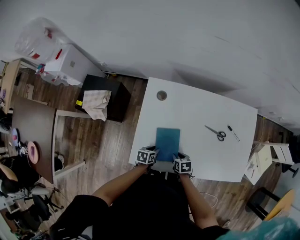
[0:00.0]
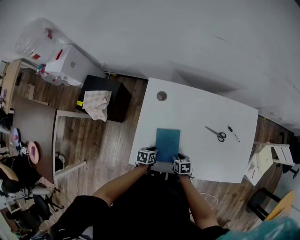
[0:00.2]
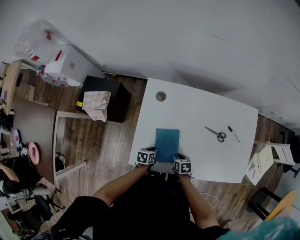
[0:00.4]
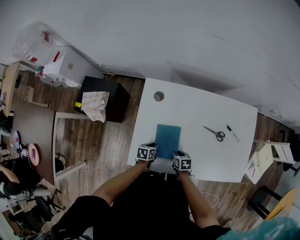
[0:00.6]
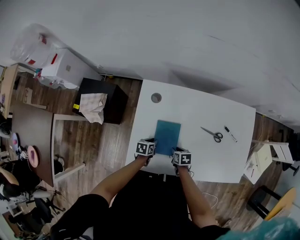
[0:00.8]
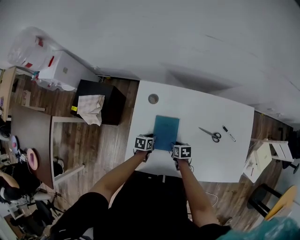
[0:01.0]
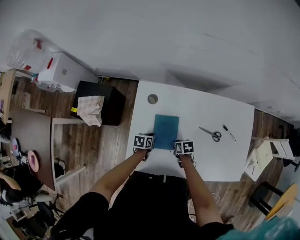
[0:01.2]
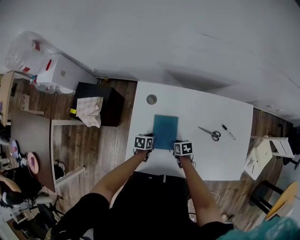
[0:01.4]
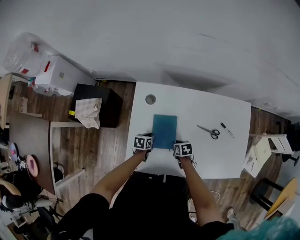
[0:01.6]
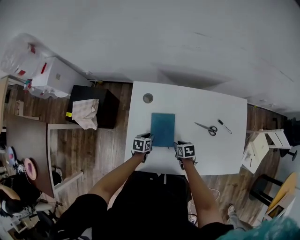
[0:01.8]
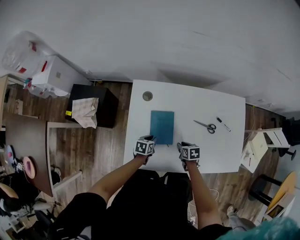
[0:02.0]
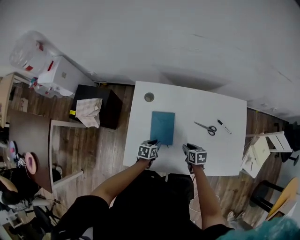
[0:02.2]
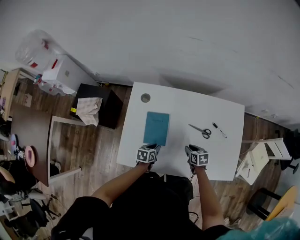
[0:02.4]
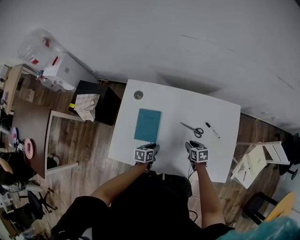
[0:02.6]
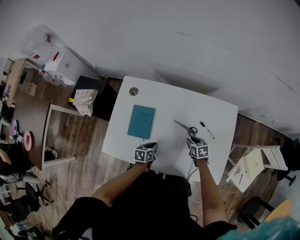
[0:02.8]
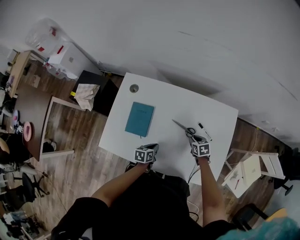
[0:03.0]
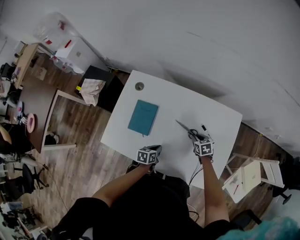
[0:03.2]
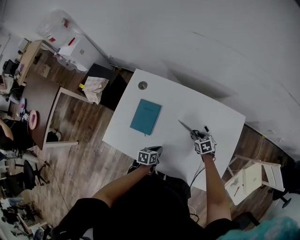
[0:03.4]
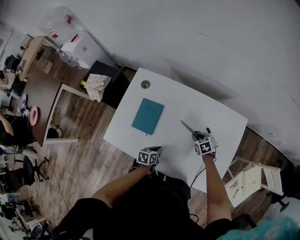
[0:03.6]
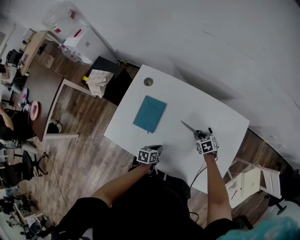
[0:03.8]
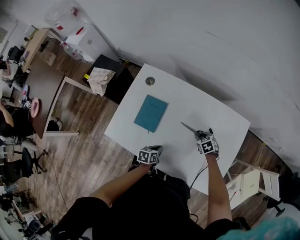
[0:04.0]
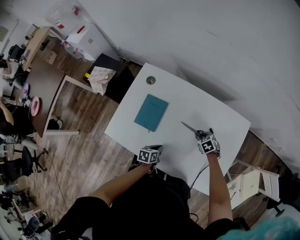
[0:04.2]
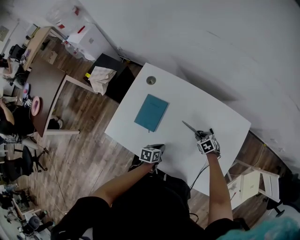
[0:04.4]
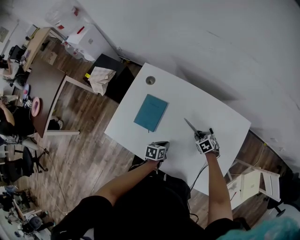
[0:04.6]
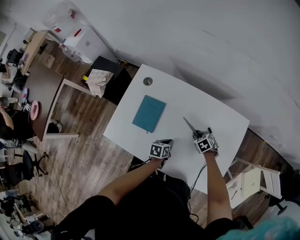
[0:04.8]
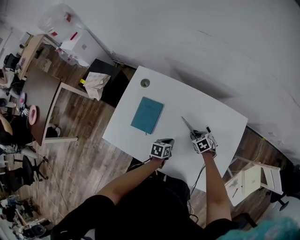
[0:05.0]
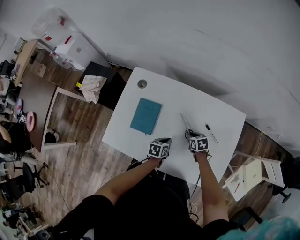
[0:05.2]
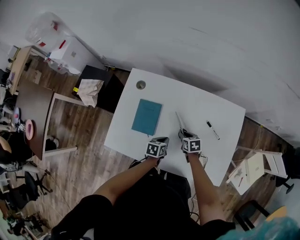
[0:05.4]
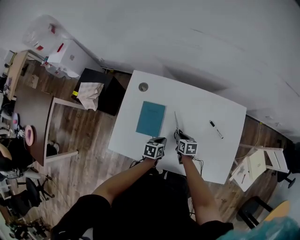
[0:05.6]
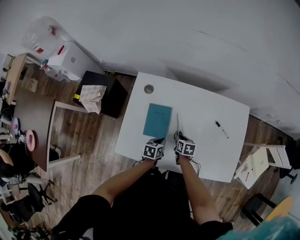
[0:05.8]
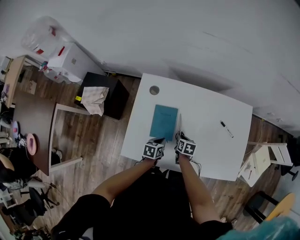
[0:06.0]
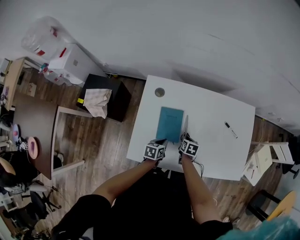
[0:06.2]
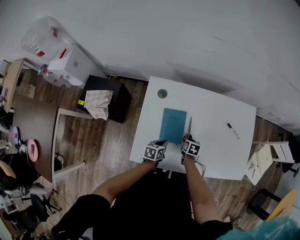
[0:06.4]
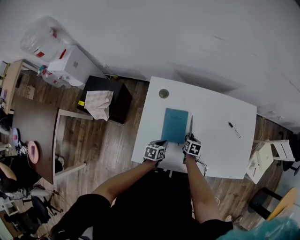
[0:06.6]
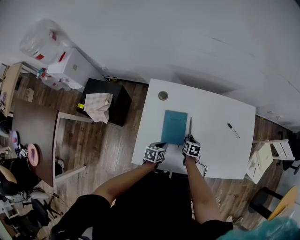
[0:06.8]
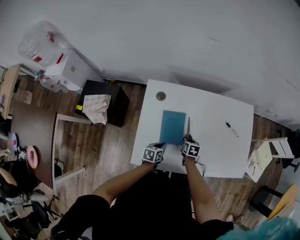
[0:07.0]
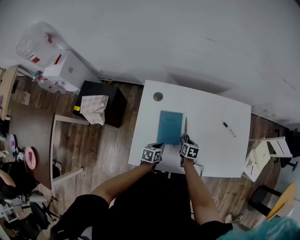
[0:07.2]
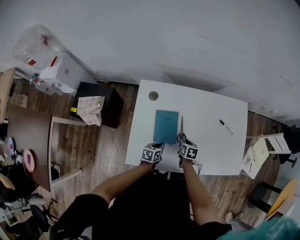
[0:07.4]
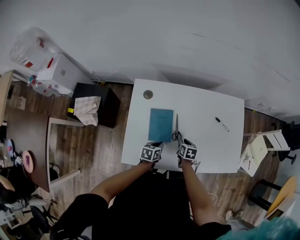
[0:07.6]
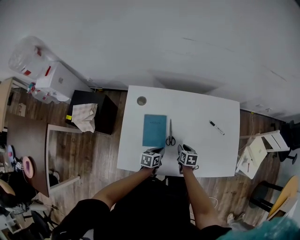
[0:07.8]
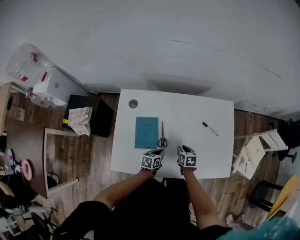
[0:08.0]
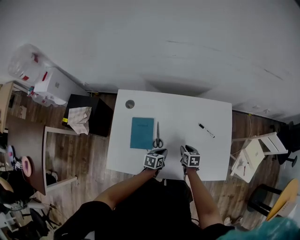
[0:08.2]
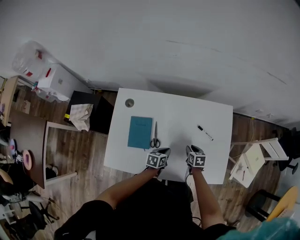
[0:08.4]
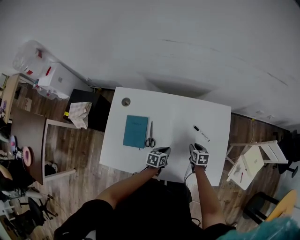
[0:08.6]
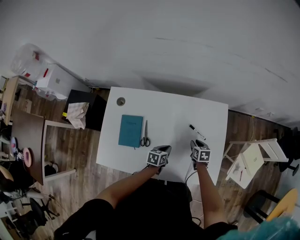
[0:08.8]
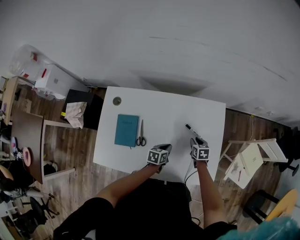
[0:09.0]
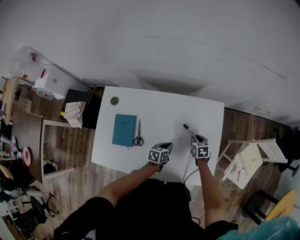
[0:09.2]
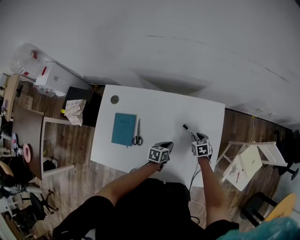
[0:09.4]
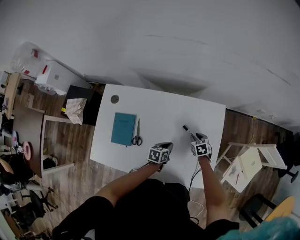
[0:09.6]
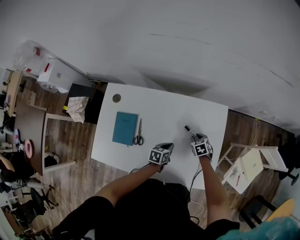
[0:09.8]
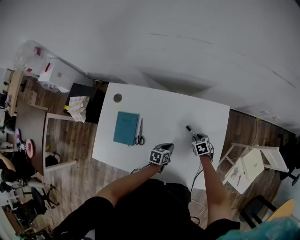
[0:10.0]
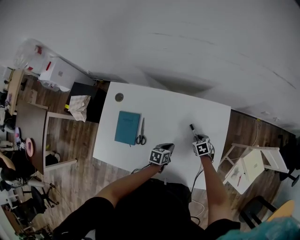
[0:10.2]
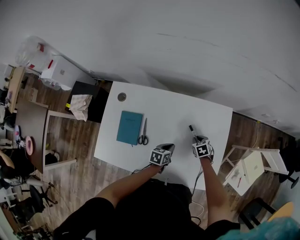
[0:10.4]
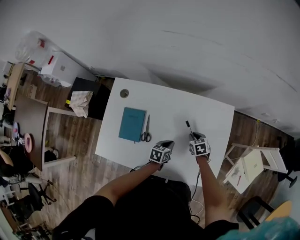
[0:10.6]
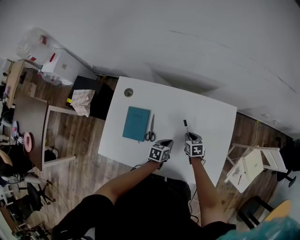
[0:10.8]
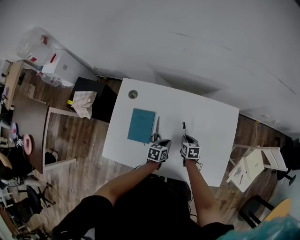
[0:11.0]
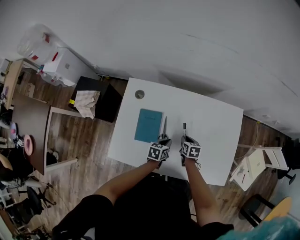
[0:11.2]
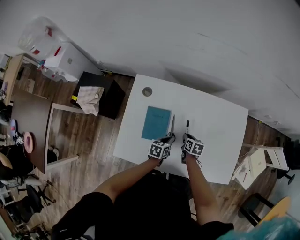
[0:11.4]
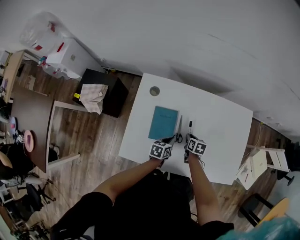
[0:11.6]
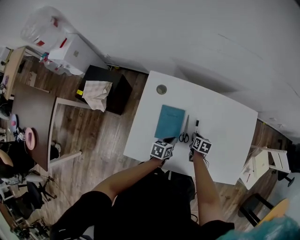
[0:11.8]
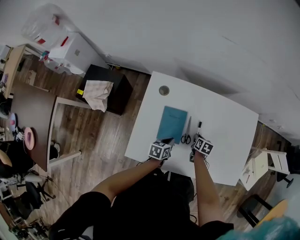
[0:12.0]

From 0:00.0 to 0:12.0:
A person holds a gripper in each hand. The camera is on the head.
From 0:00.0 to 0:01.6: The grippers both shift forward by some 10 cm.
From 0:01.6 to 0:03.0: The right gripper shifts about 30 cm to the right, and changes its angle by roughly 20 degrees. Meanwhile the left gripper shifts approximately 25 cm to the right and backward.
From 0:03.0 to 0:04.4: The right gripper rotates roughly 30 degrees.
From 0:04.4 to 0:06.0: The left gripper moves to the left and forward, about 15 cm. Meanwhile the right gripper travels to the left by roughly 20 cm, and rotates around the line of its fingers by roughly 60 degrees, clockwise from behind.
From 0:07.6 to 0:09.0: Both grippers travel together to the right and forward, roughly 30 cm.
From 0:09.0 to 0:10.4: The right gripper rotates approximately 30 degrees.
From 0:10.4 to 0:12.0: Both grippers travel together to the left, about 25 cm. The right gripper turns by some 40 degrees.

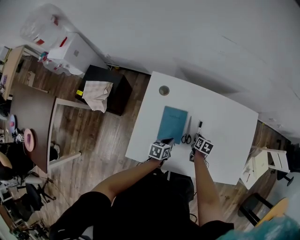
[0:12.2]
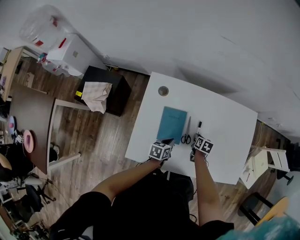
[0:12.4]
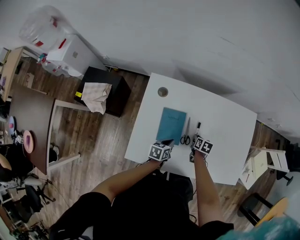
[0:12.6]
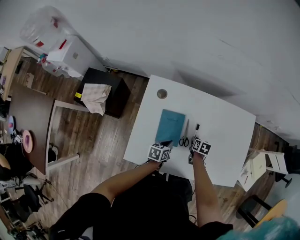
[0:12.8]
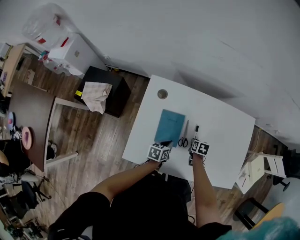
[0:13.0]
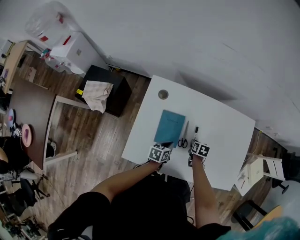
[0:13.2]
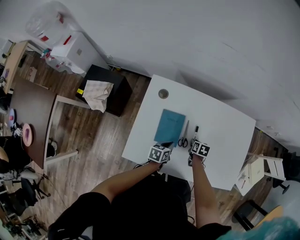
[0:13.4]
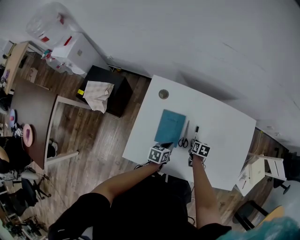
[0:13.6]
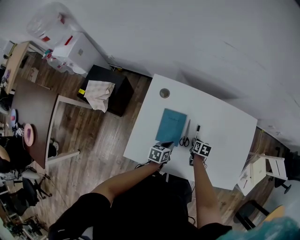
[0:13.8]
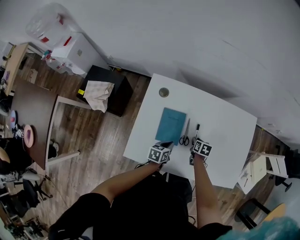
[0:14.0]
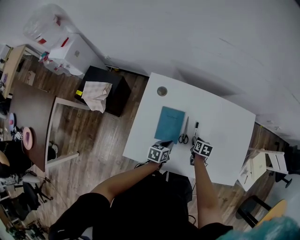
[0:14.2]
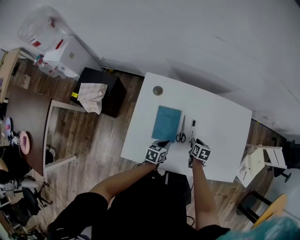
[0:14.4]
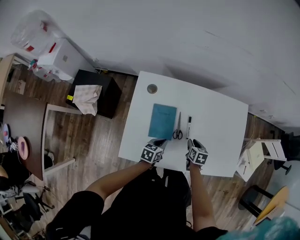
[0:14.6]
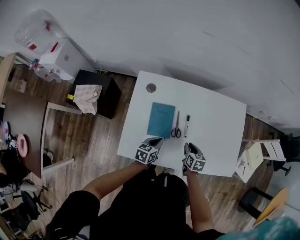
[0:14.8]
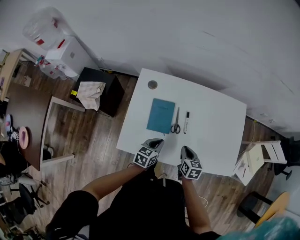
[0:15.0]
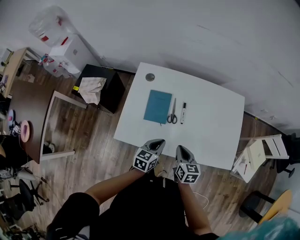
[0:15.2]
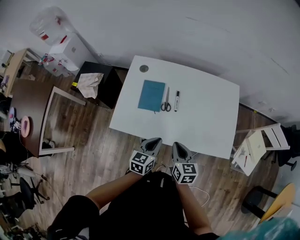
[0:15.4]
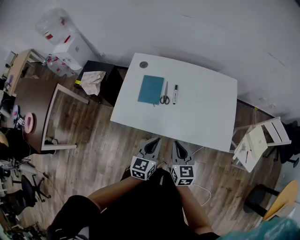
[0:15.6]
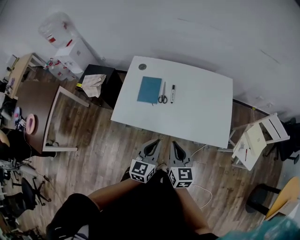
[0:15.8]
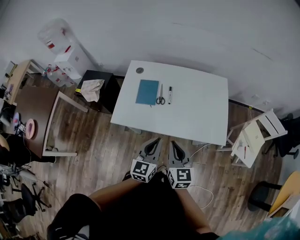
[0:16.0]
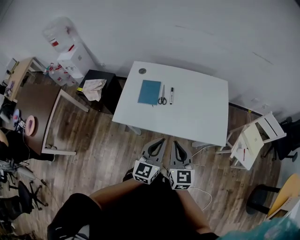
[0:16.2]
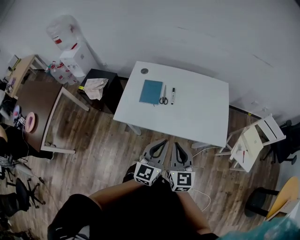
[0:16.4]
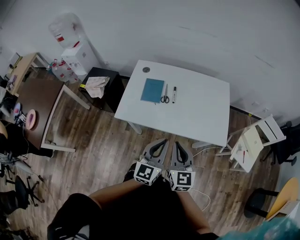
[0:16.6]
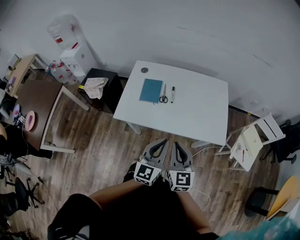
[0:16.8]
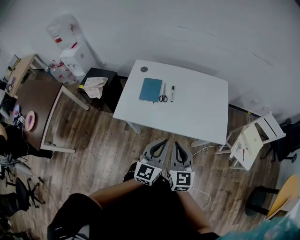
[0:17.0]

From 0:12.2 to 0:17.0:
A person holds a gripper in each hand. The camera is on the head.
From 0:12.2 to 0:13.8: There are only small adjustments of the grippers.
From 0:13.8 to 0:15.4: The left gripper travels backward, upward and to the right by approximately 25 cm, and rotates approximately 30 degrees, while the right gripper heads backward and upward, covering roughly 35 cm, and tilts its fingers some 30 degrees upward.
From 0:15.4 to 0:17.0: The right gripper goes about 20 cm backward and upward, and turns by some 30 degrees. The left gripper is displaced backward, upward and to the right by approximately 20 cm, and swivels roughly 30 degrees.

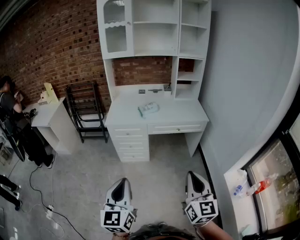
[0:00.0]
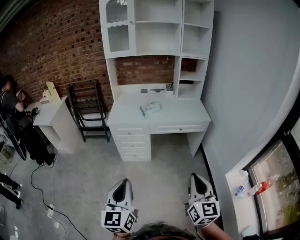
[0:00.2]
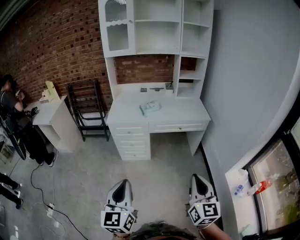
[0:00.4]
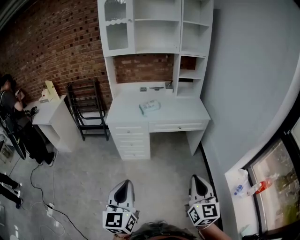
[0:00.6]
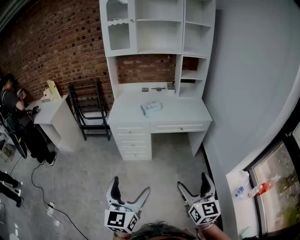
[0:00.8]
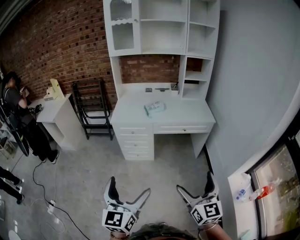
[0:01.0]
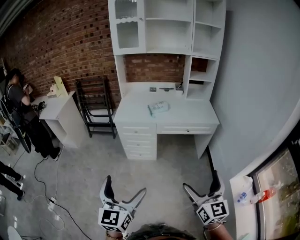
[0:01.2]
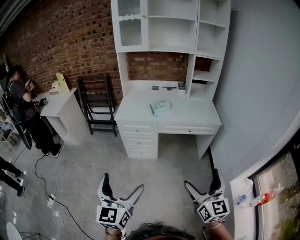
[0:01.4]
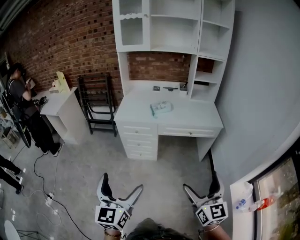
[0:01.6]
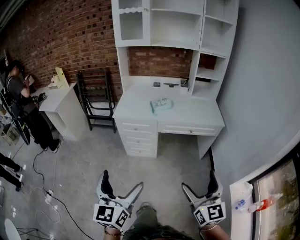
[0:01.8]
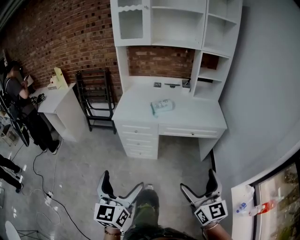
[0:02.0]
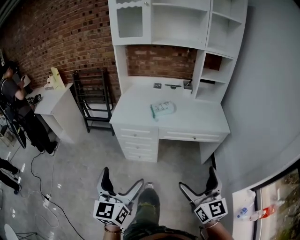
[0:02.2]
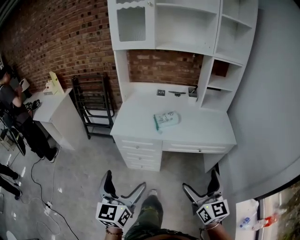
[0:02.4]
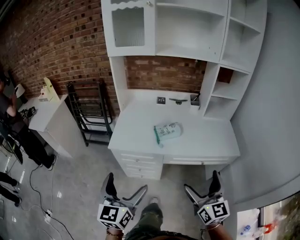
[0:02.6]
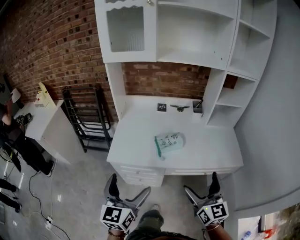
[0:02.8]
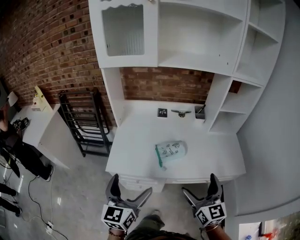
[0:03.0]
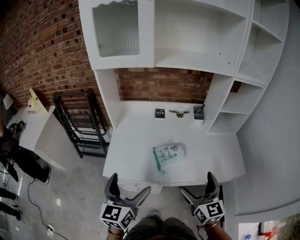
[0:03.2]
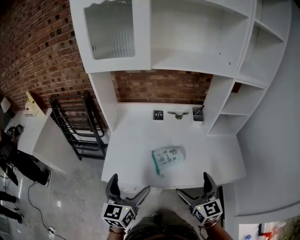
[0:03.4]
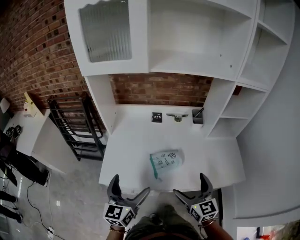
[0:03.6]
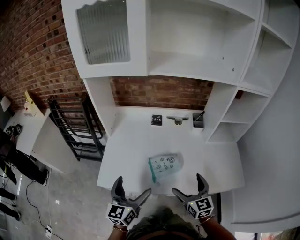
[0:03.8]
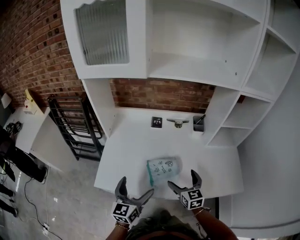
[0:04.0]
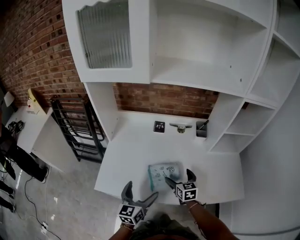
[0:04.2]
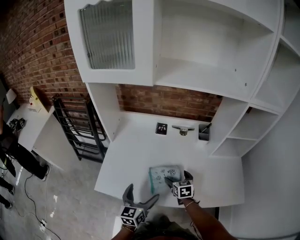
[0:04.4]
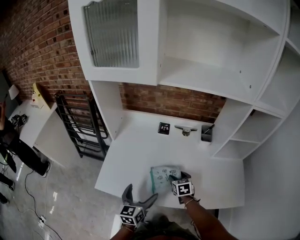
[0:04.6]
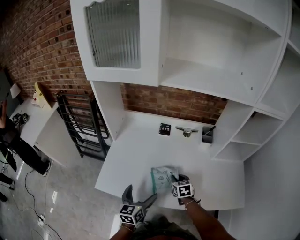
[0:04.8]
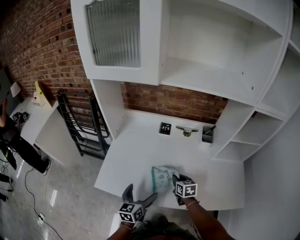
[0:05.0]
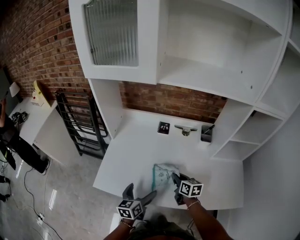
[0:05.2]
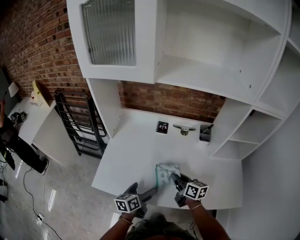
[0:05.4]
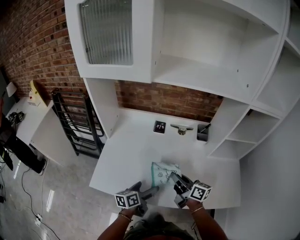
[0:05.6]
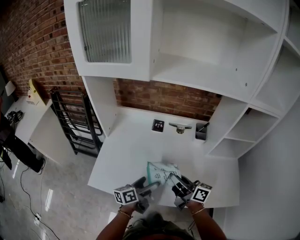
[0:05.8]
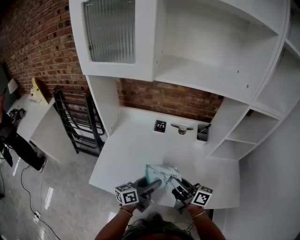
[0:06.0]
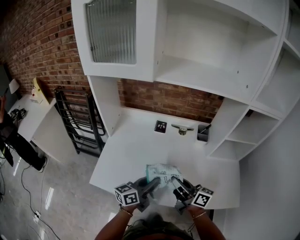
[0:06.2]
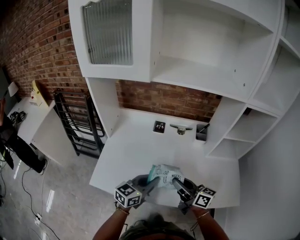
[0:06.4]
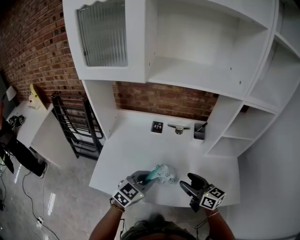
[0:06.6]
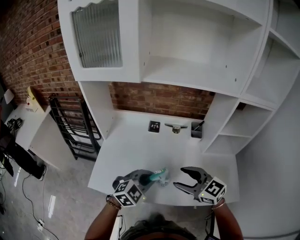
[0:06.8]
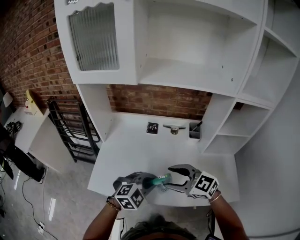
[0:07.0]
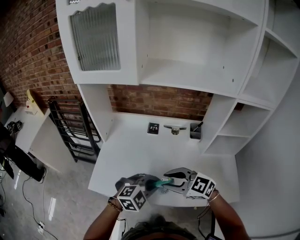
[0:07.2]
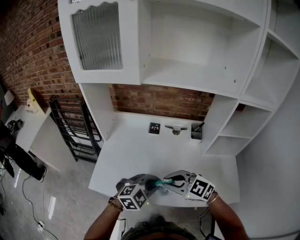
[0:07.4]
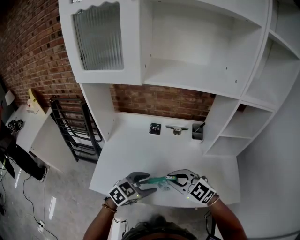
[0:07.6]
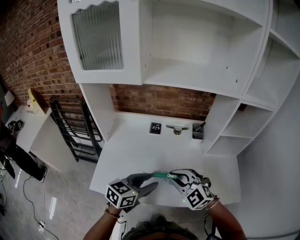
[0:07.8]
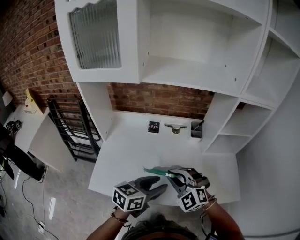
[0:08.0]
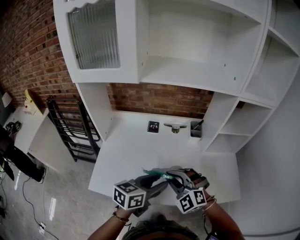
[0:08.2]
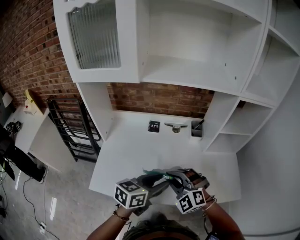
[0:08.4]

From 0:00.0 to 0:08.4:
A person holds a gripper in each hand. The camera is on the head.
From 0:00.0 to 0:01.4: The left gripper opens. Meanwhile the right gripper goes some 5 cm forward, and opens its fingers.
From 0:01.4 to 0:02.8: Both grippers are carried forward, roughly 50 cm.
From 0:02.8 to 0:04.2: The grippers both shift forward and downward by approximately 35 cm. The right gripper turns by about 30 degrees.
From 0:04.2 to 0:05.6: The right gripper moves upward, about 10 cm, turns by about 50 degrees, and closes its fingers; the left gripper is displaced downward by approximately 5 cm, and rotates roughly 40 degrees.
From 0:05.6 to 0:07.0: The left gripper heads upward and to the right, covering some 15 cm, twists approximately 90 degrees clockwise, seen from behind, and closes; the right gripper goes about 10 cm upward and backward, rolls counterclockwise, seen from behind, by roughly 50 degrees, and opens up.
From 0:07.0 to 0:08.4: The right gripper turns by roughly 50 degrees, and closes up. The left gripper moves roughly 5 cm, and rolls counterclockwise, seen from behind, by roughly 60 degrees.
